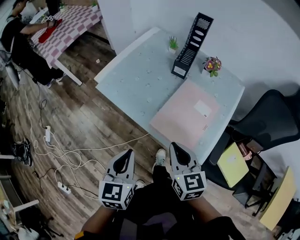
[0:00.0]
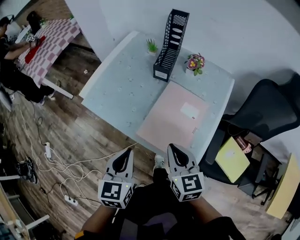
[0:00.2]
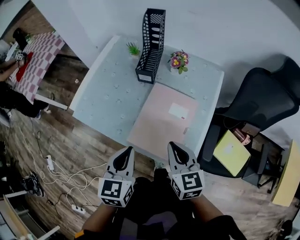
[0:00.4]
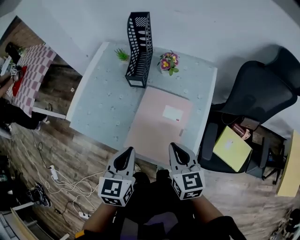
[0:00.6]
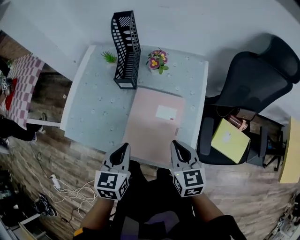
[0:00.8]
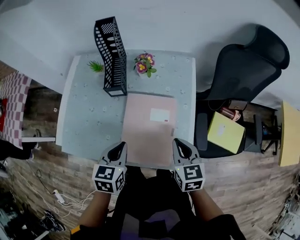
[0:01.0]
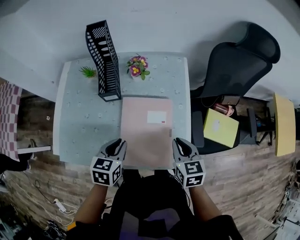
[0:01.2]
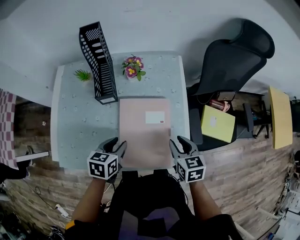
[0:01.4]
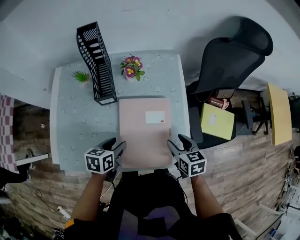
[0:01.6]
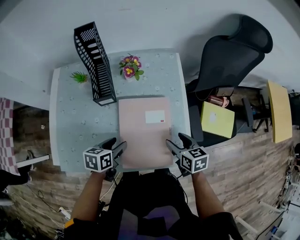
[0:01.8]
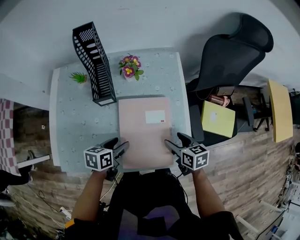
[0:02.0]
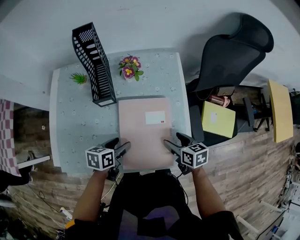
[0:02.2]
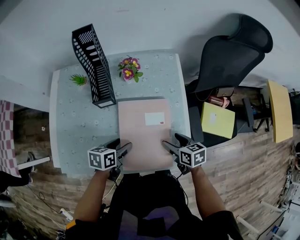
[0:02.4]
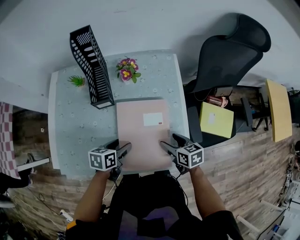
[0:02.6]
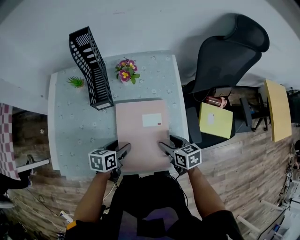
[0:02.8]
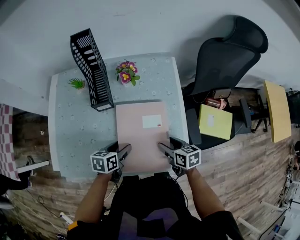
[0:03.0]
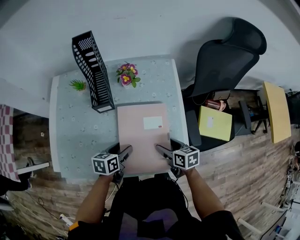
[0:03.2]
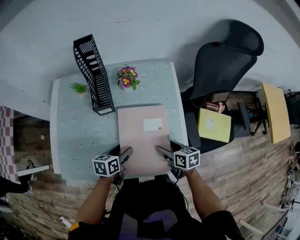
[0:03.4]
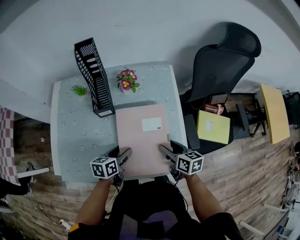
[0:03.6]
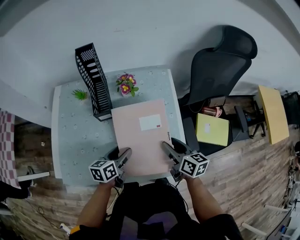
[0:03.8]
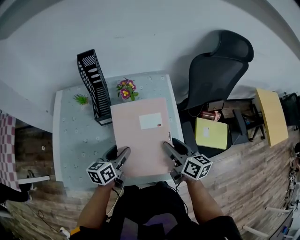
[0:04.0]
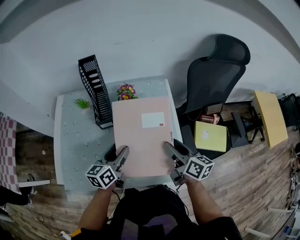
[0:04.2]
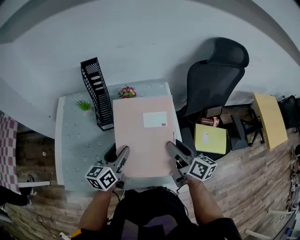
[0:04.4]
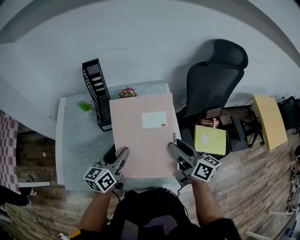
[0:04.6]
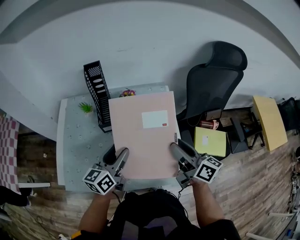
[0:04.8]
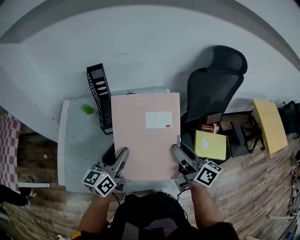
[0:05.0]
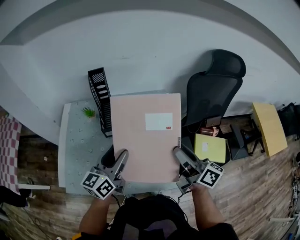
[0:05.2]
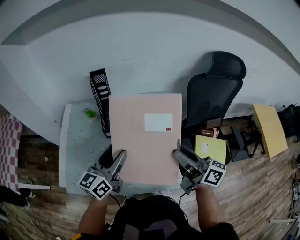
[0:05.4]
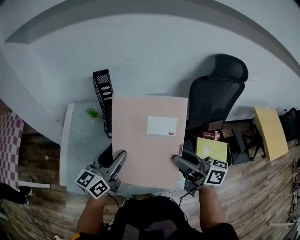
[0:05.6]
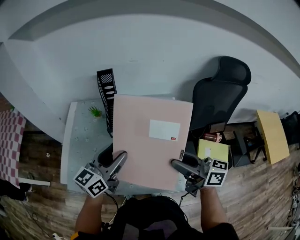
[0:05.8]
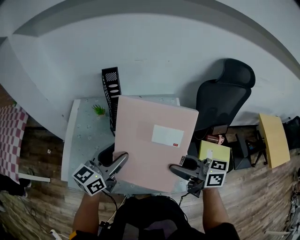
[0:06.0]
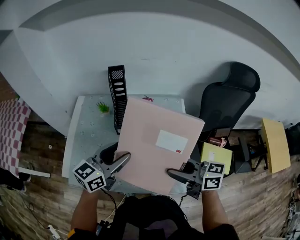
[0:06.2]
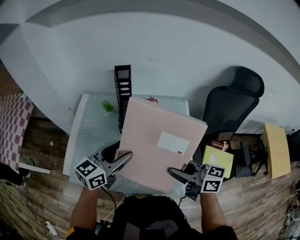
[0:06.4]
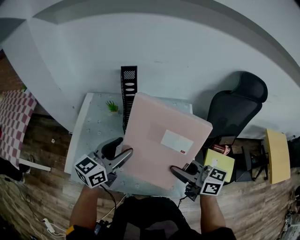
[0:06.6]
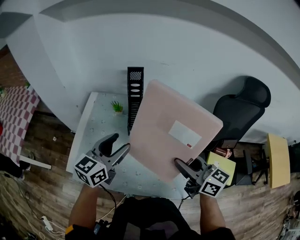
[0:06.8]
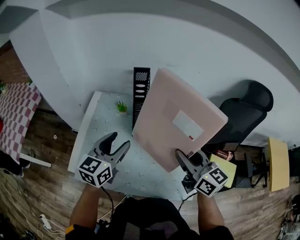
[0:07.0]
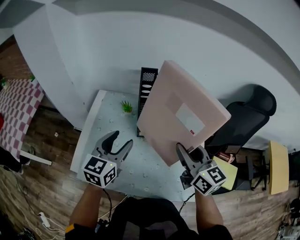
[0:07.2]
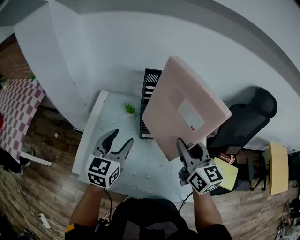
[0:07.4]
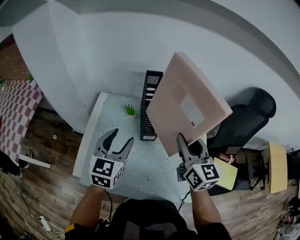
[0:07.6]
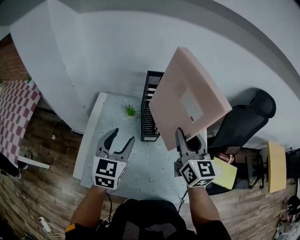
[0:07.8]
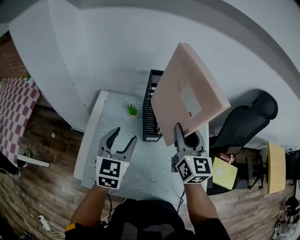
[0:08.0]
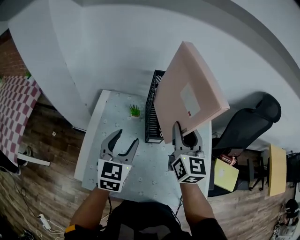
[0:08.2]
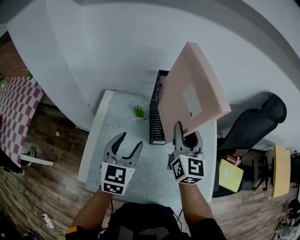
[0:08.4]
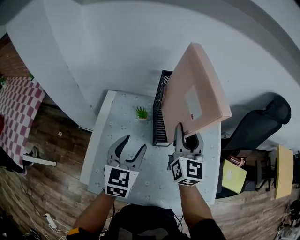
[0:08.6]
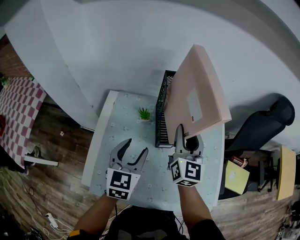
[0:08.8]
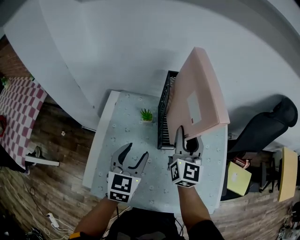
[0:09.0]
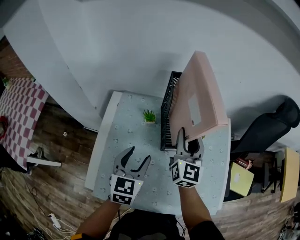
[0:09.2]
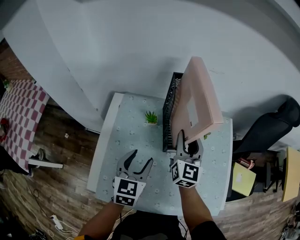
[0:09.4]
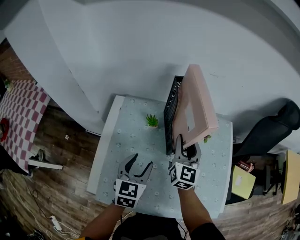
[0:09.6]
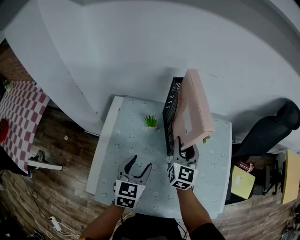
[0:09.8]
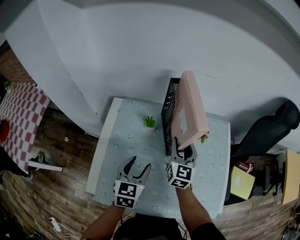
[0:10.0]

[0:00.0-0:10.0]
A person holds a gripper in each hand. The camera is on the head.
0:00.0 to 0:01.4: The right gripper moves some 20 cm, turns by approximately 40 degrees, and opens up. The left gripper moves about 30 cm, changes its angle by approximately 50 degrees, and opens its fingers.
0:01.4 to 0:02.8: The grippers both shift downward by approximately 5 cm. The left gripper opens up. The right gripper opens up.
0:02.8 to 0:04.2: The grippers both shift upward by some 15 cm. The left gripper turns by approximately 30 degrees, while the right gripper turns by about 40 degrees.
0:04.2 to 0:05.8: The grippers both shift upward by about 15 cm. The left gripper rotates some 20 degrees; the right gripper changes its angle by about 30 degrees.
0:05.8 to 0:07.2: The left gripper shifts some 15 cm to the left and forward, and turns by approximately 30 degrees. Meanwhile the right gripper is displaced forward and to the left by some 15 cm, and changes its angle by approximately 30 degrees.
0:07.2 to 0:08.6: The right gripper is displaced forward and to the left by about 15 cm, and rotates roughly 30 degrees. The left gripper moves forward, roughly 5 cm.
0:08.6 to 0:10.0: The grippers both shift downward by about 10 cm.

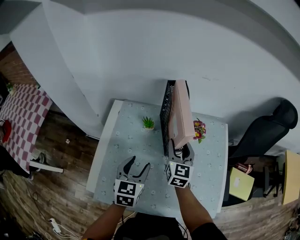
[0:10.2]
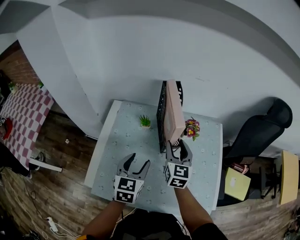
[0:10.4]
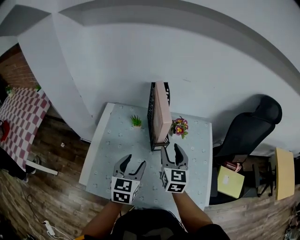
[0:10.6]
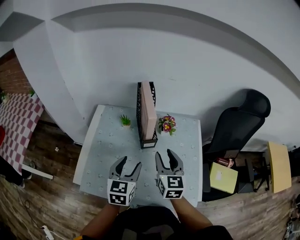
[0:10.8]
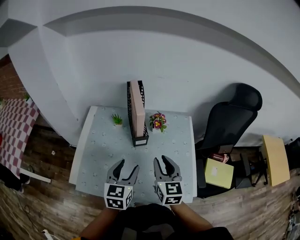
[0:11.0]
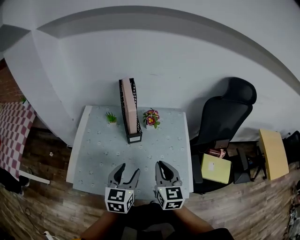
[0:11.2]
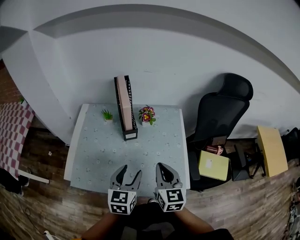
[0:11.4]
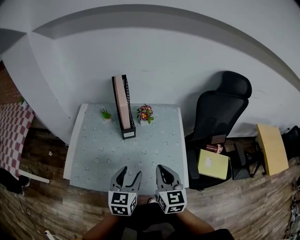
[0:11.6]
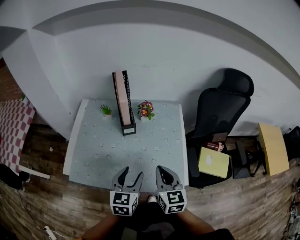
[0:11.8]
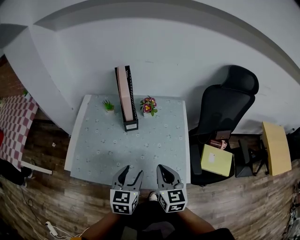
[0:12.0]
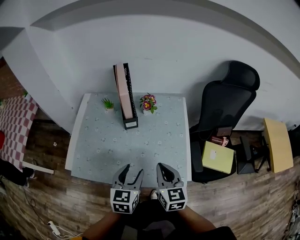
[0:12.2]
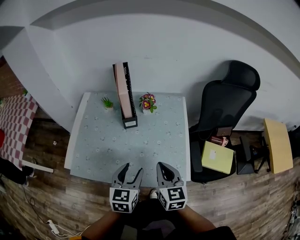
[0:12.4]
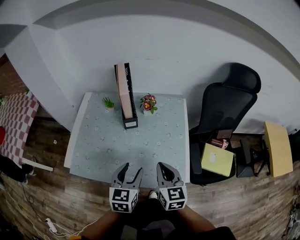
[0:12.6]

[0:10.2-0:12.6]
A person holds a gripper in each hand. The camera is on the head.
0:10.2 to 0:11.4: The left gripper shifts approximately 25 cm to the right and backward, while the right gripper shifts approximately 30 cm backward and to the right, and closes its fingers.
0:11.4 to 0:12.6: The right gripper shifts by some 5 cm. Meanwhile the left gripper moves about 5 cm.

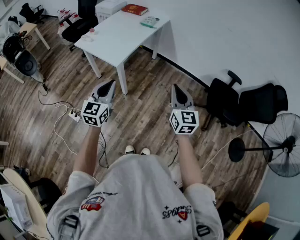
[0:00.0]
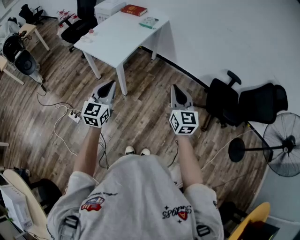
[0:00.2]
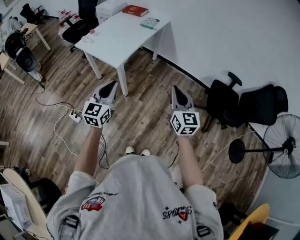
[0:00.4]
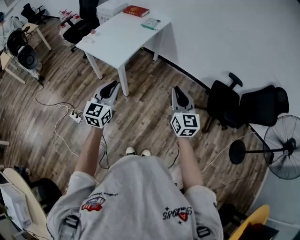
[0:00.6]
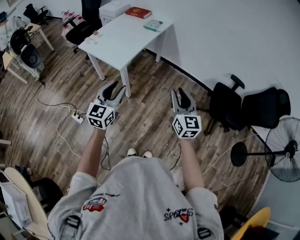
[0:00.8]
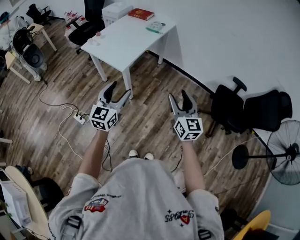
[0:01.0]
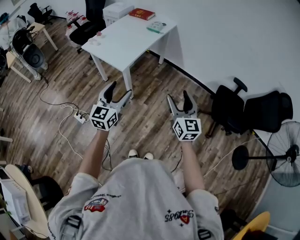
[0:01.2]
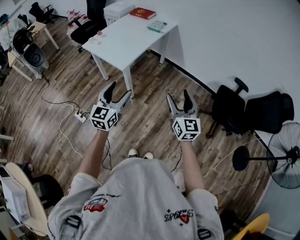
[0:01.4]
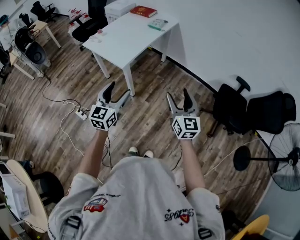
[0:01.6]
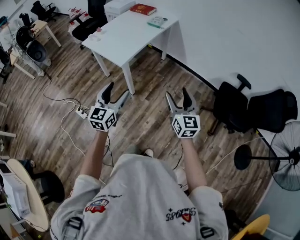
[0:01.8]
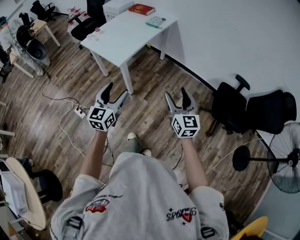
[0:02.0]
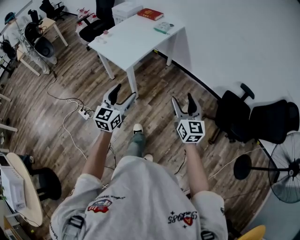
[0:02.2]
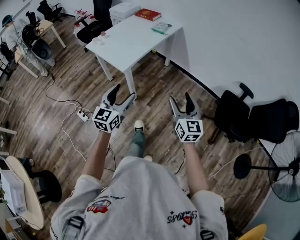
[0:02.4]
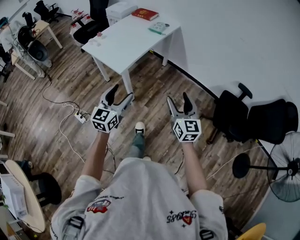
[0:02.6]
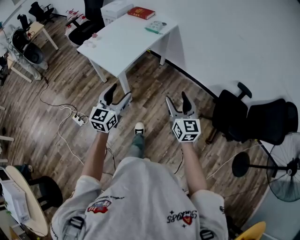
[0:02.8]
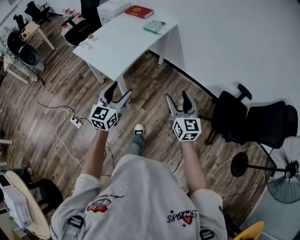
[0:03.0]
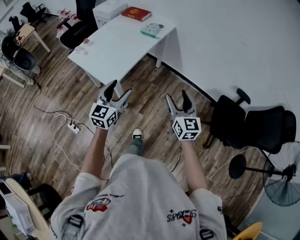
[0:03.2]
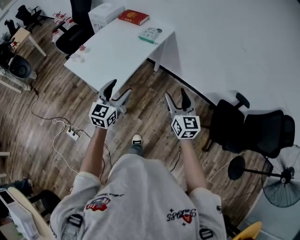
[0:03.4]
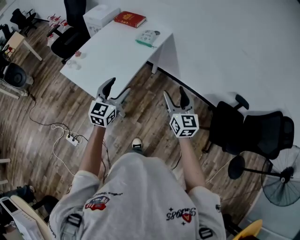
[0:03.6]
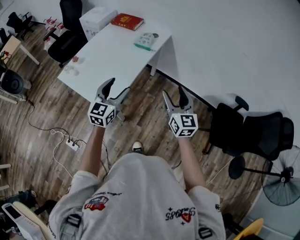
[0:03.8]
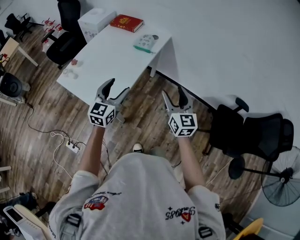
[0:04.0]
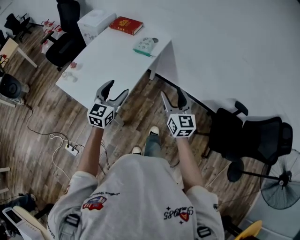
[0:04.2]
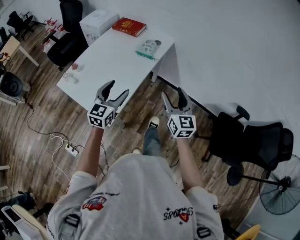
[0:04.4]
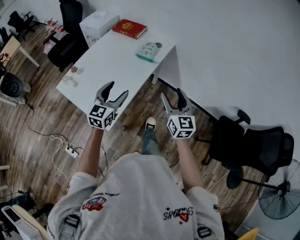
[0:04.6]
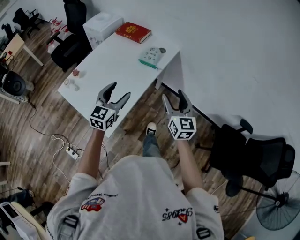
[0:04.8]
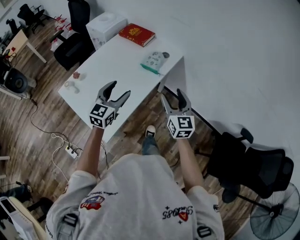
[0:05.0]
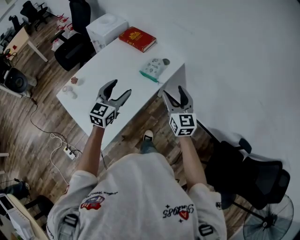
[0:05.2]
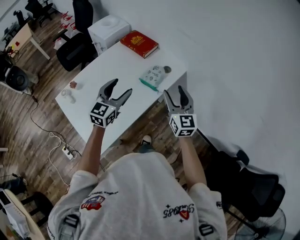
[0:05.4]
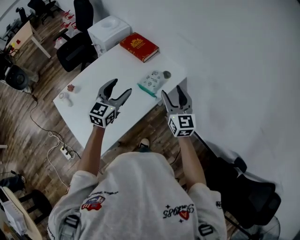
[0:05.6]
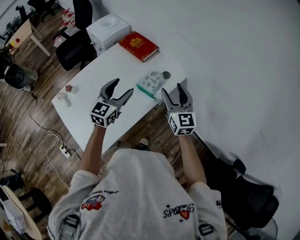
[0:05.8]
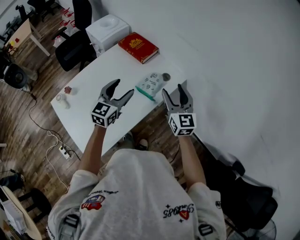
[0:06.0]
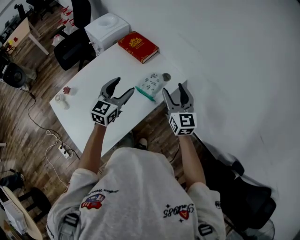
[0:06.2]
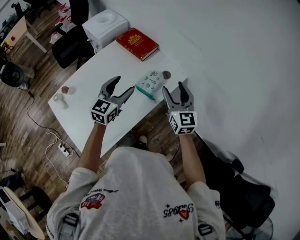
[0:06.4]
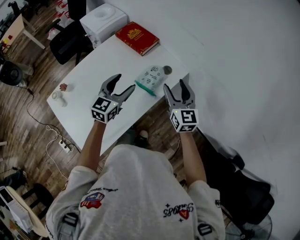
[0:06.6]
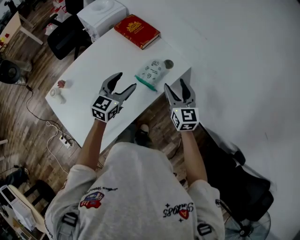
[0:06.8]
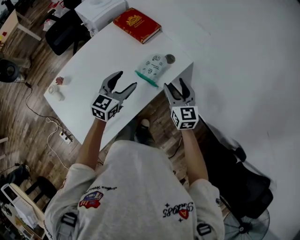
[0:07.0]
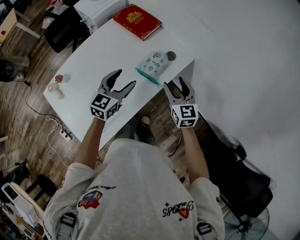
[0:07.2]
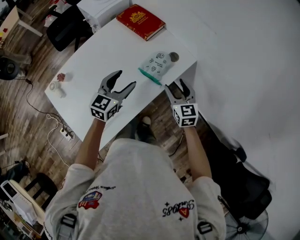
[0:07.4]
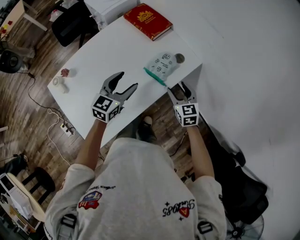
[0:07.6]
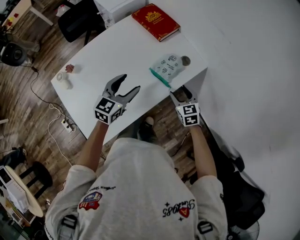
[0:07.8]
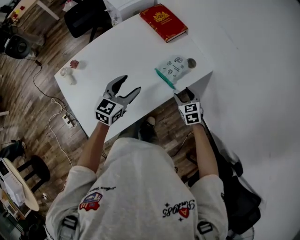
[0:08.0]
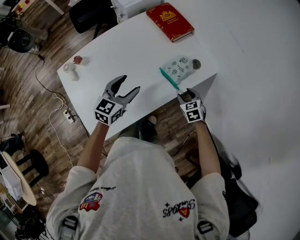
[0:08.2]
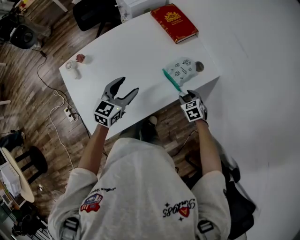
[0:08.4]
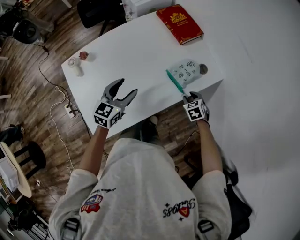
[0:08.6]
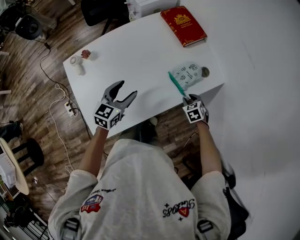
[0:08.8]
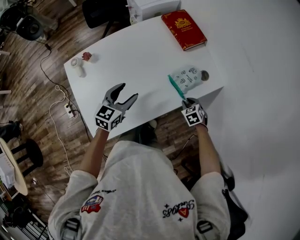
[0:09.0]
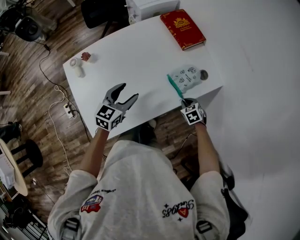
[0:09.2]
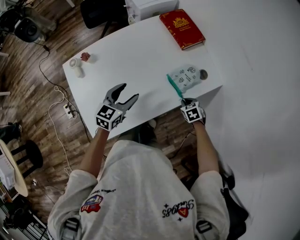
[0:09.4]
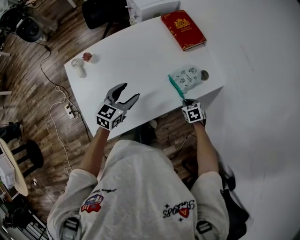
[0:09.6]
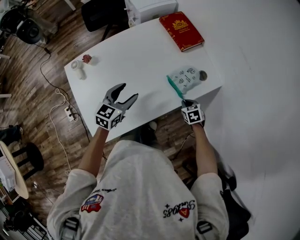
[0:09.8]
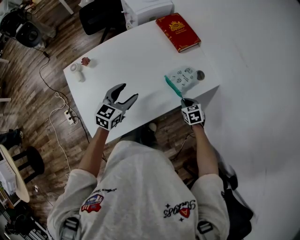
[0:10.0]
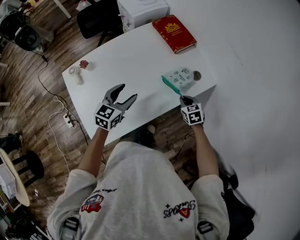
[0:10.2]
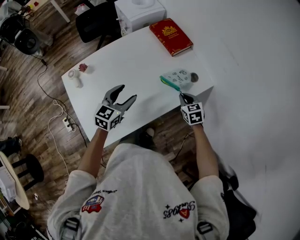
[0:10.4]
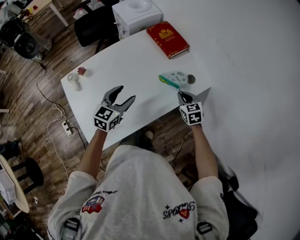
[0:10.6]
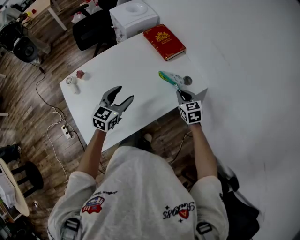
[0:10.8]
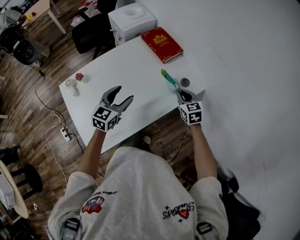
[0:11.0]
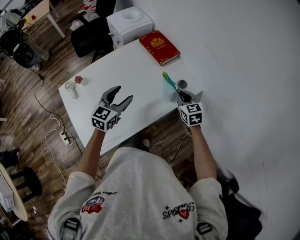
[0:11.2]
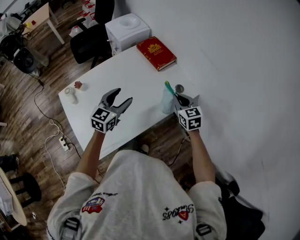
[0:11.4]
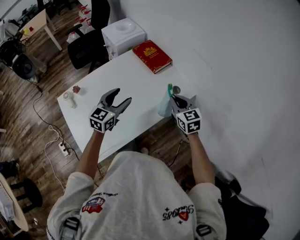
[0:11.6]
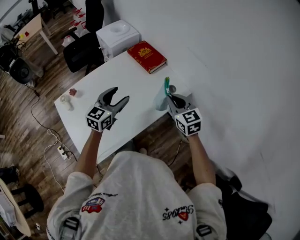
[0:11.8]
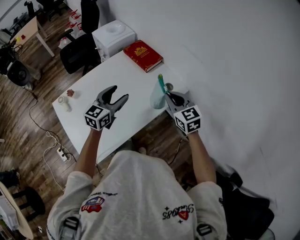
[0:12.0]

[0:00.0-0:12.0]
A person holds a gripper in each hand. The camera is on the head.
0:00.0 to 0:01.6: The left gripper shifts by approximately 5 cm, and opens. Meanwhile the right gripper opens up.
0:01.6 to 0:03.0: Both grippers travel together forward, some 15 cm.
0:03.0 to 0:04.4: Both grippers travel together forward, some 35 cm.
0:04.4 to 0:06.0: The grippers both shift forward by approximately 40 cm.
0:06.0 to 0:07.6: The right gripper moves downward, approximately 20 cm, and rotates about 30 degrees; the left gripper shifts about 10 cm downward.
0:07.6 to 0:09.0: The right gripper heads downward, covering approximately 15 cm, points its fingers about 30 degrees further downward, and closes its fingers, while the left gripper heads to the left, covering some 10 cm.
0:09.0 to 0:10.4: The right gripper is displaced upward by about 10 cm, and changes its angle by about 20 degrees.
0:10.4 to 0:12.0: The left gripper travels upward and to the right by about 15 cm. Meanwhile the right gripper heads upward, covering roughly 20 cm, and rotates roughly 20 degrees.
